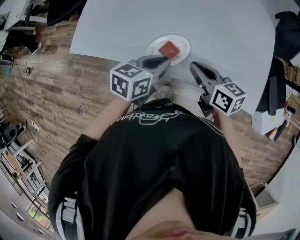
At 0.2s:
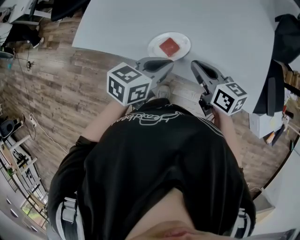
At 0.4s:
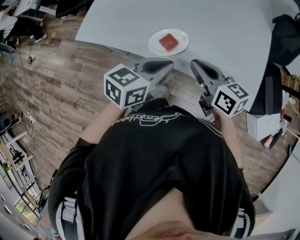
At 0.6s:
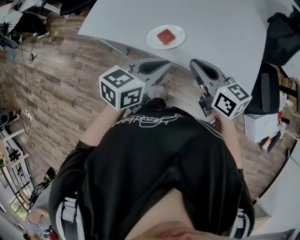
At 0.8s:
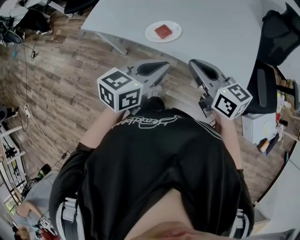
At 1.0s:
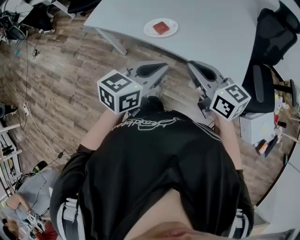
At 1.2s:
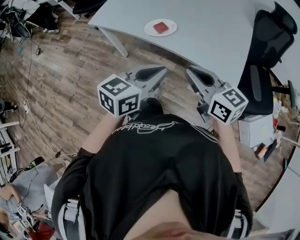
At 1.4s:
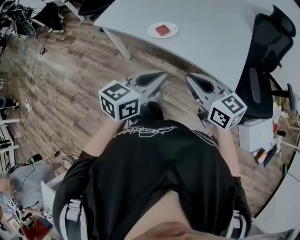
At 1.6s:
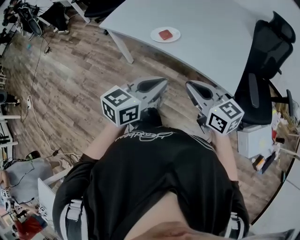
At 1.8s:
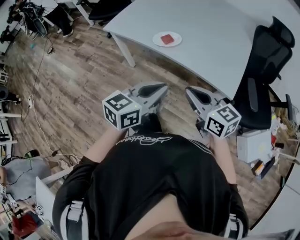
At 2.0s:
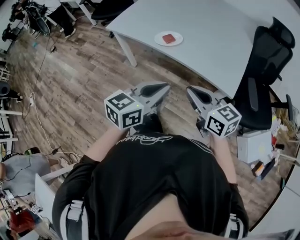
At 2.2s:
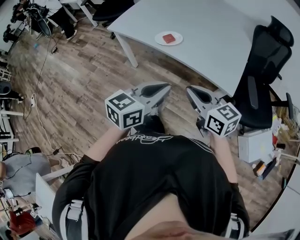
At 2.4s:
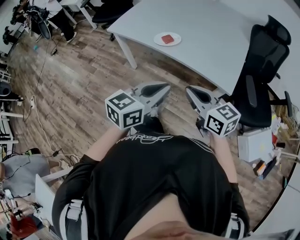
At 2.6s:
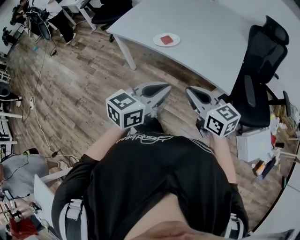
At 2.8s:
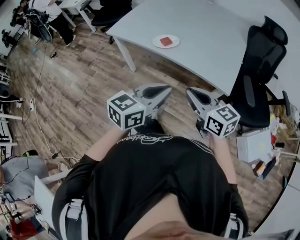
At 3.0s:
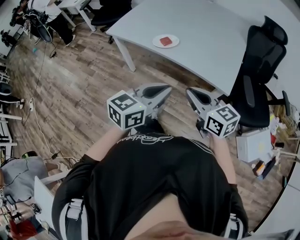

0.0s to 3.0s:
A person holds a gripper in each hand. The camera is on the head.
0.0s to 1.6s: Both grippers move backward and upward, roughly 35 cm. The right gripper changes its angle by about 30 degrees, while the left gripper rotates about 20 degrees.
1.6s to 3.0s: Both grippers move backward, roughly 5 cm.

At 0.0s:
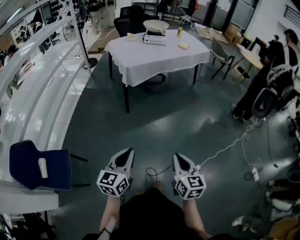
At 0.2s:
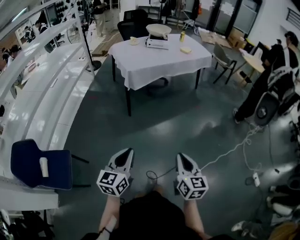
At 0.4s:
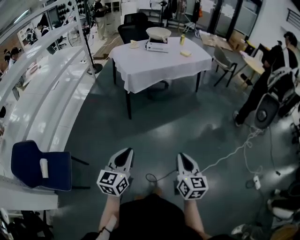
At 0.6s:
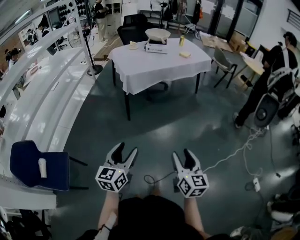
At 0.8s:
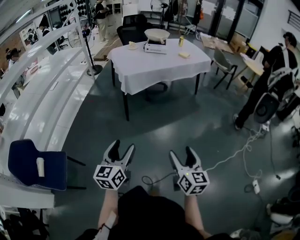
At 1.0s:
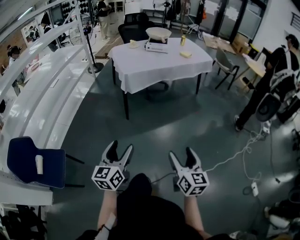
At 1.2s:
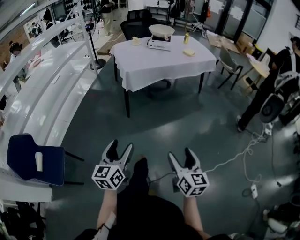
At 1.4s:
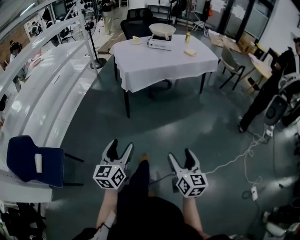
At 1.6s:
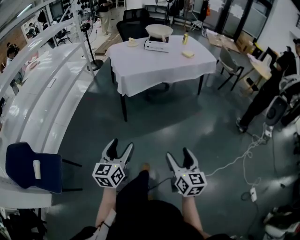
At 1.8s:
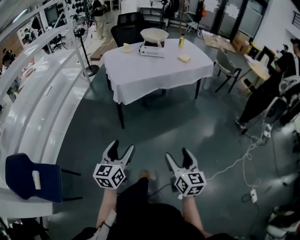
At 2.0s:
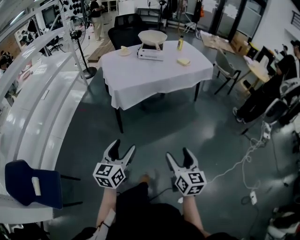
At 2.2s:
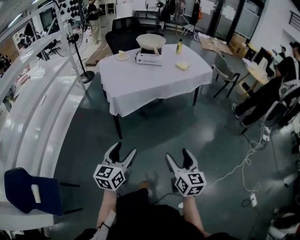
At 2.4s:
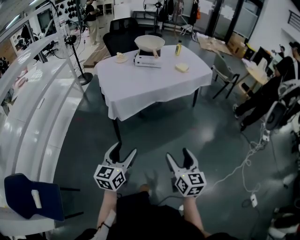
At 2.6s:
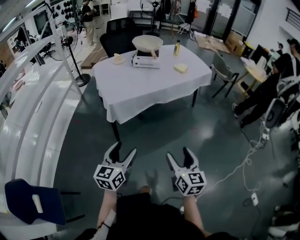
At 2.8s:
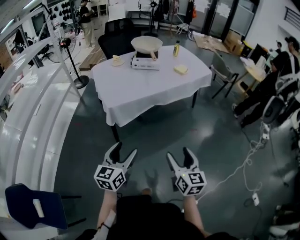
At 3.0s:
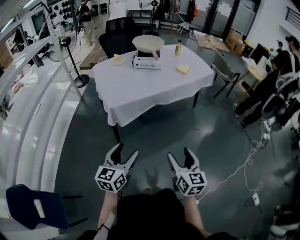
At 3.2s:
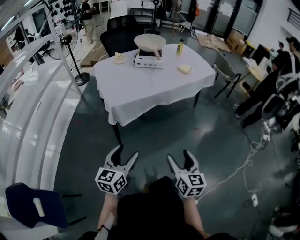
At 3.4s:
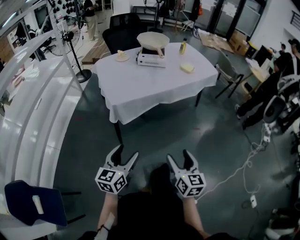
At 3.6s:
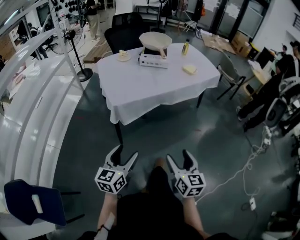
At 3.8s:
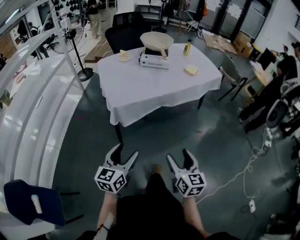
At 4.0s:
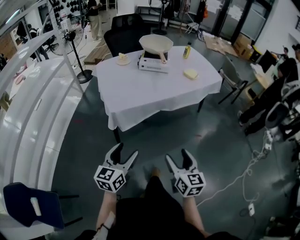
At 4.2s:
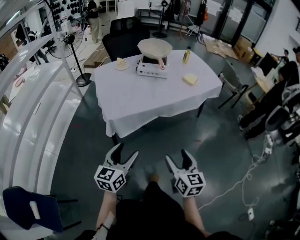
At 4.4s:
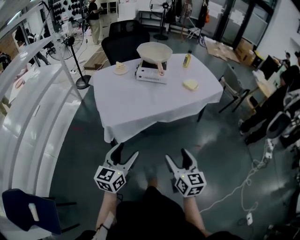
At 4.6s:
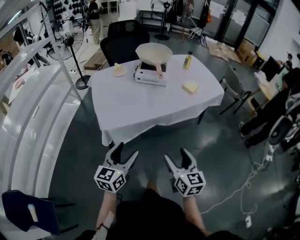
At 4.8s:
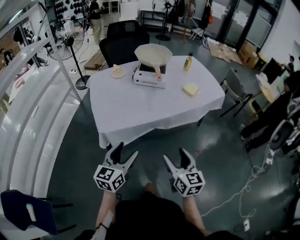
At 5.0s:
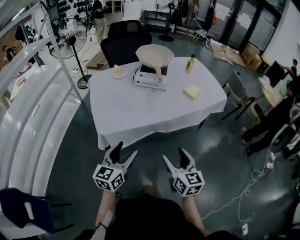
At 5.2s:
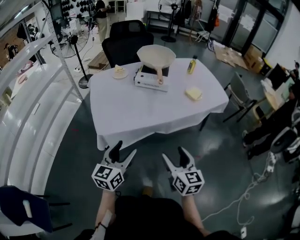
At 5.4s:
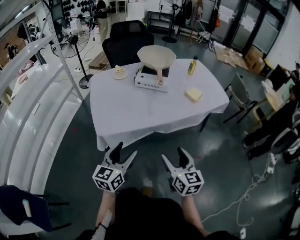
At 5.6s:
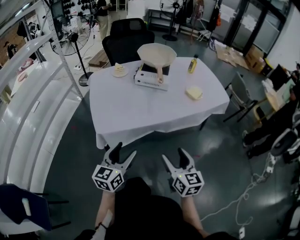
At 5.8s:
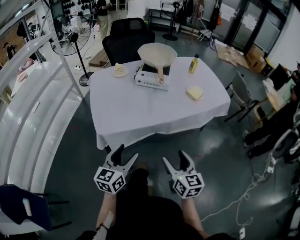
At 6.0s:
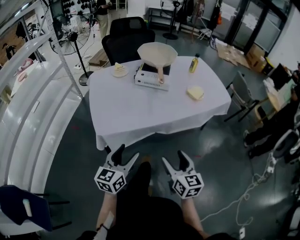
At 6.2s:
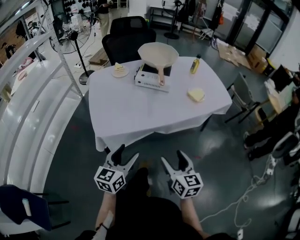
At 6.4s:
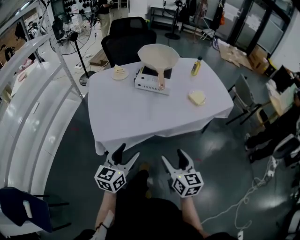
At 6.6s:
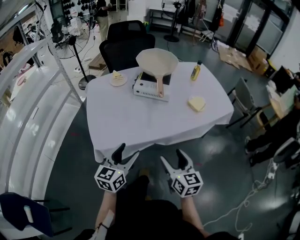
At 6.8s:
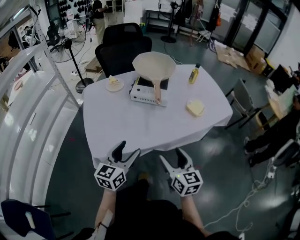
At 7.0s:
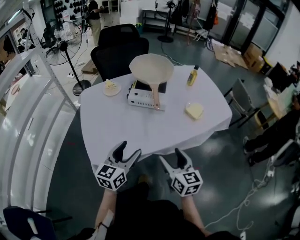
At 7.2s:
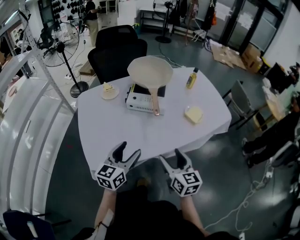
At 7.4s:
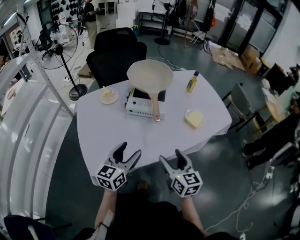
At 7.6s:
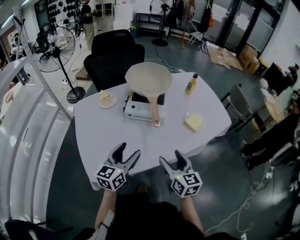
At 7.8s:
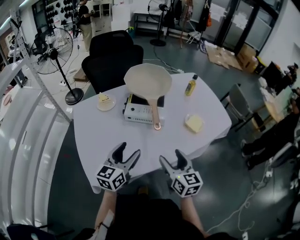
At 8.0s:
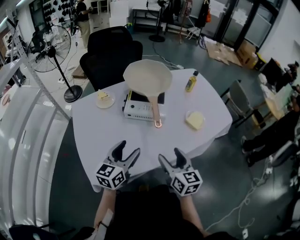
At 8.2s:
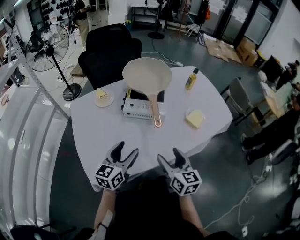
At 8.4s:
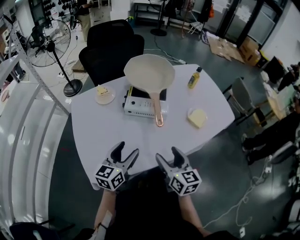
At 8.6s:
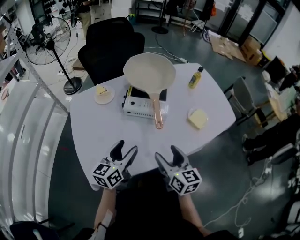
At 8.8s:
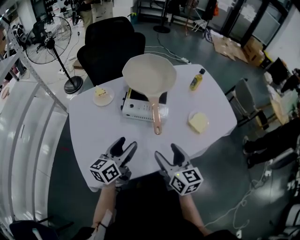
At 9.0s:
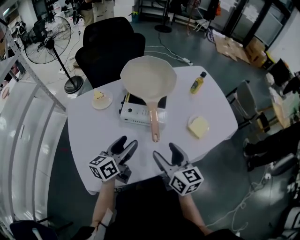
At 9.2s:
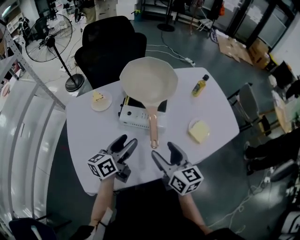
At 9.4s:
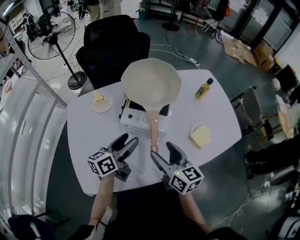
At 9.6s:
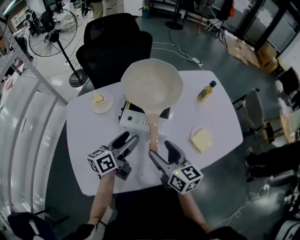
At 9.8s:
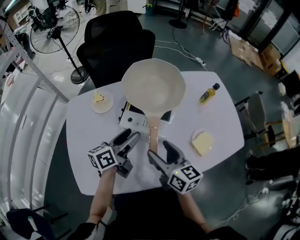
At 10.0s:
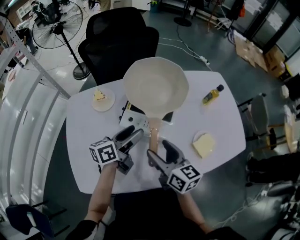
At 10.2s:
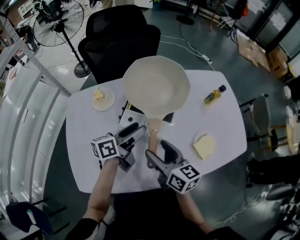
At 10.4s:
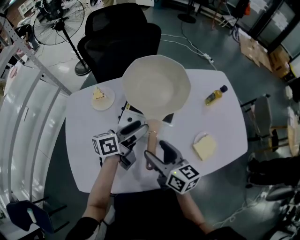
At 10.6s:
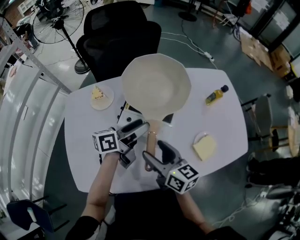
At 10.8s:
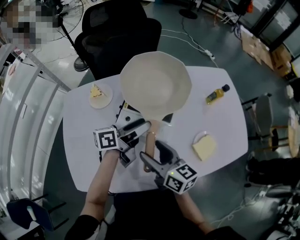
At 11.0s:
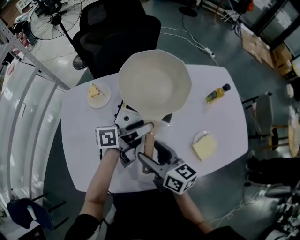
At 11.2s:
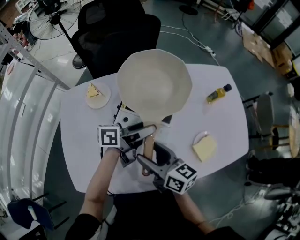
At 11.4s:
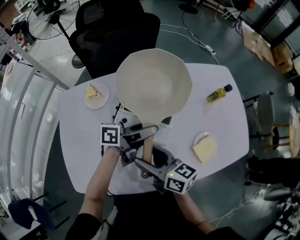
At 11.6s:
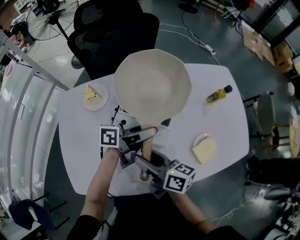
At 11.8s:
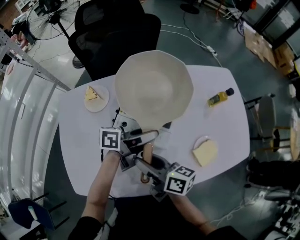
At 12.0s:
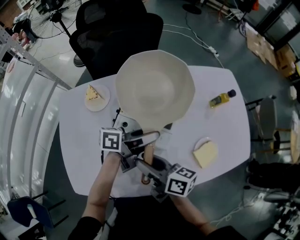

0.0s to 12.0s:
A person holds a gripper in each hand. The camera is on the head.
0.0s to 1.6s: The right gripper shifts roughly 20 cm forward and to the right, and opens its fingers. The left gripper moves forward, about 15 cm, and opens up.
1.6s to 3.0s: The grippers both shift forward by roughly 30 cm.
3.0s to 4.4s: The grippers both shift forward by roughly 20 cm.
4.4s to 6.0s: The right gripper goes approximately 15 cm forward. Meanwhile the left gripper moves forward and to the right, about 15 cm.
6.0s to 7.6s: The two grippers go roughly 30 cm forward.
7.6s to 9.0s: Both grippers travel together forward, about 10 cm. The left gripper rotates some 20 degrees.
9.0s to 10.4s: Both grippers travel together forward, some 15 cm. The right gripper rotates roughly 20 degrees.
10.4s to 12.0s: The left gripper goes approximately 5 cm to the right, and rotates about 20 degrees. Meanwhile the right gripper turns by roughly 30 degrees, and closes.

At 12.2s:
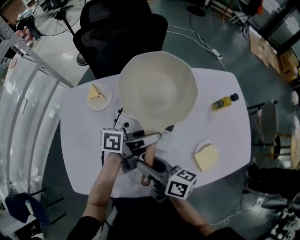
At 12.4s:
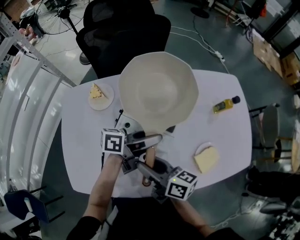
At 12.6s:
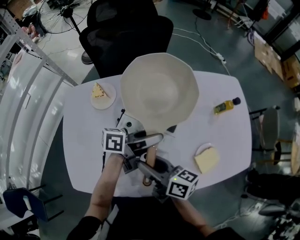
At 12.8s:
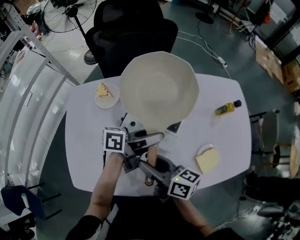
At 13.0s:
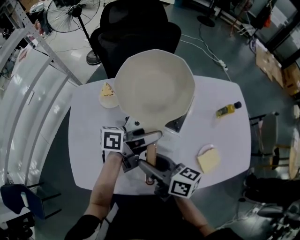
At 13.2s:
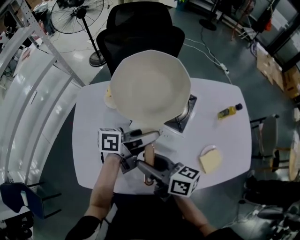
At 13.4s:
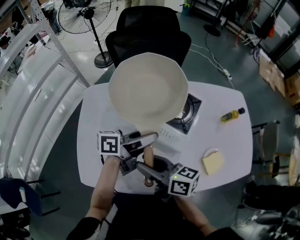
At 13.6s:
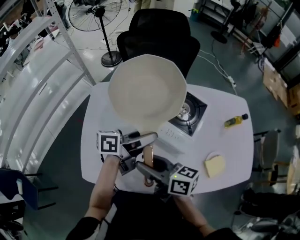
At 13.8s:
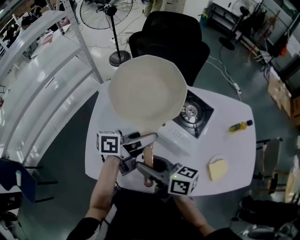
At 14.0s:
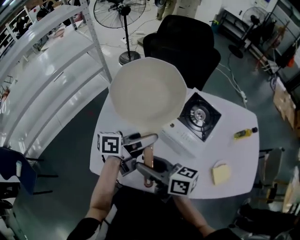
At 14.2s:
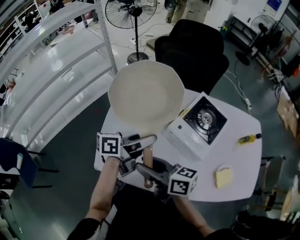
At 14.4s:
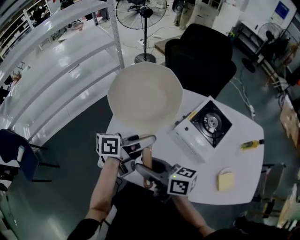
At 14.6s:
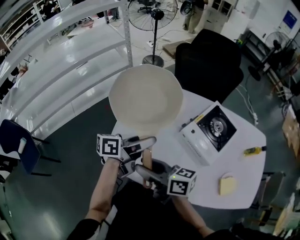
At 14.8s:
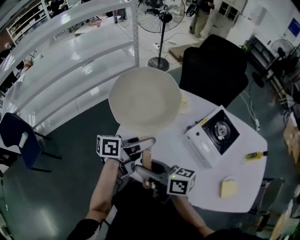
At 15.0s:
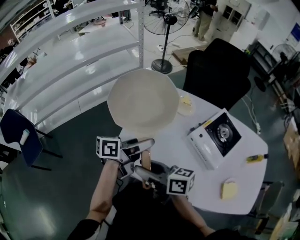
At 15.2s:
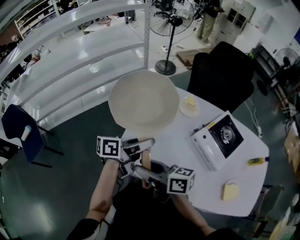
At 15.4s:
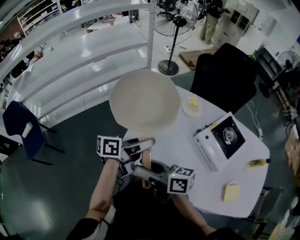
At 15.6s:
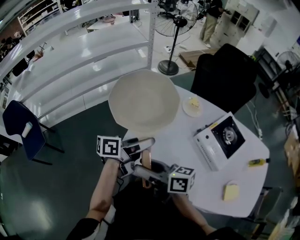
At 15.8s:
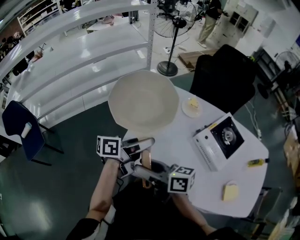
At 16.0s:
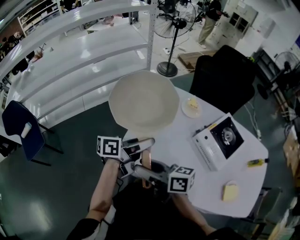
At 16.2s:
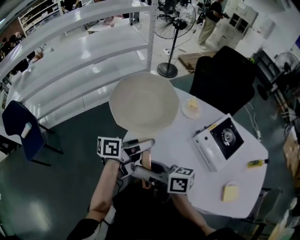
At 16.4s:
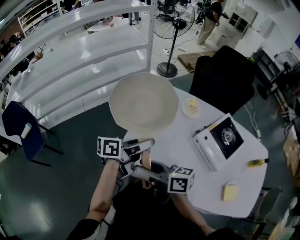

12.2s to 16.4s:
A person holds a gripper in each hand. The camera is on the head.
12.2s to 13.6s: The right gripper is displaced to the left, upward and backward by some 15 cm. The left gripper is displaced to the left and upward by roughly 15 cm.
13.6s to 15.0s: The left gripper shifts by roughly 25 cm, and rotates approximately 30 degrees; the right gripper ends up some 20 cm from where it was, and rotates about 30 degrees.
15.0s to 16.4s: The grippers move only a little.

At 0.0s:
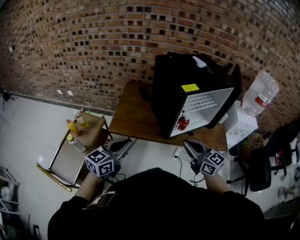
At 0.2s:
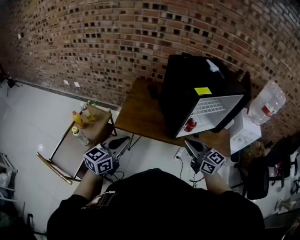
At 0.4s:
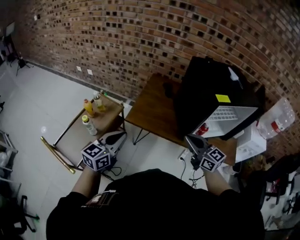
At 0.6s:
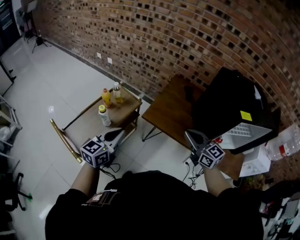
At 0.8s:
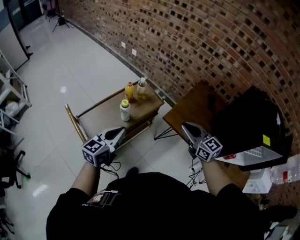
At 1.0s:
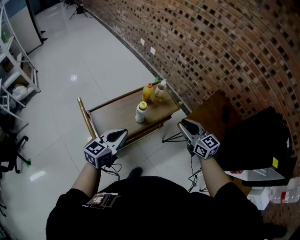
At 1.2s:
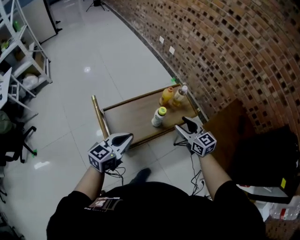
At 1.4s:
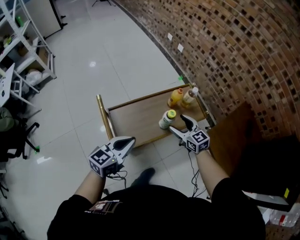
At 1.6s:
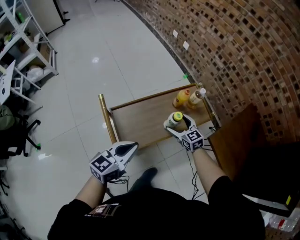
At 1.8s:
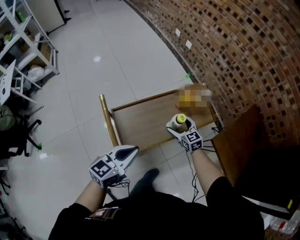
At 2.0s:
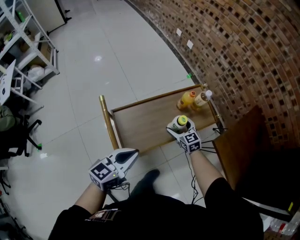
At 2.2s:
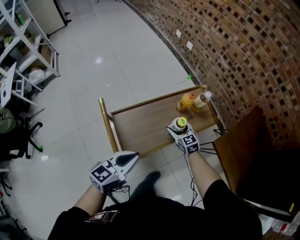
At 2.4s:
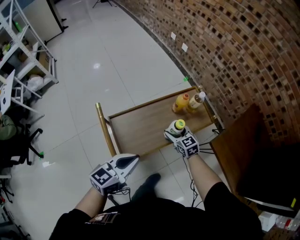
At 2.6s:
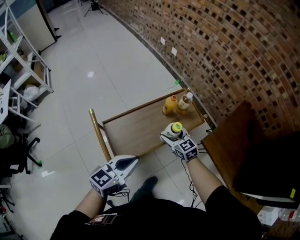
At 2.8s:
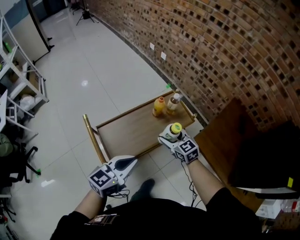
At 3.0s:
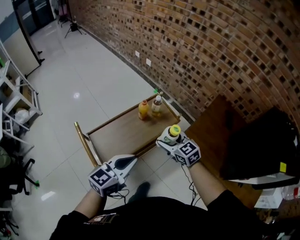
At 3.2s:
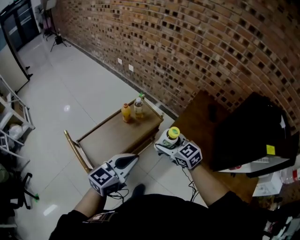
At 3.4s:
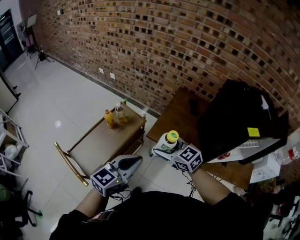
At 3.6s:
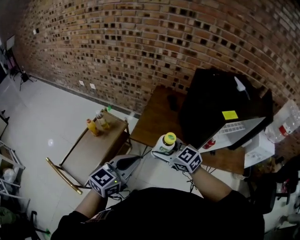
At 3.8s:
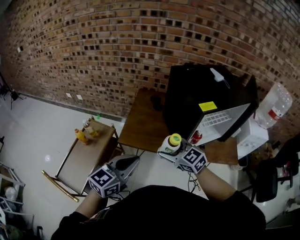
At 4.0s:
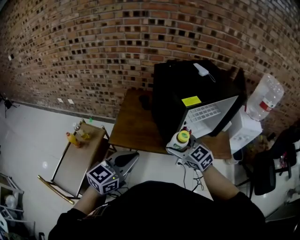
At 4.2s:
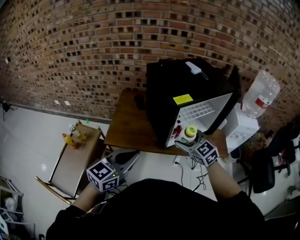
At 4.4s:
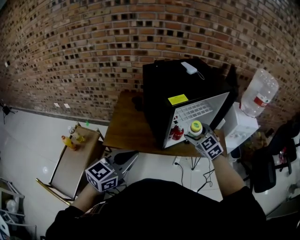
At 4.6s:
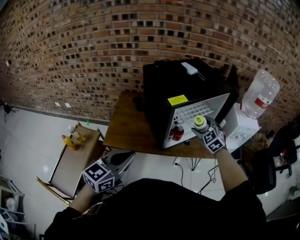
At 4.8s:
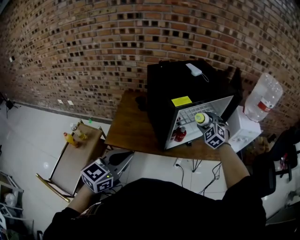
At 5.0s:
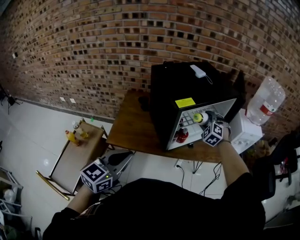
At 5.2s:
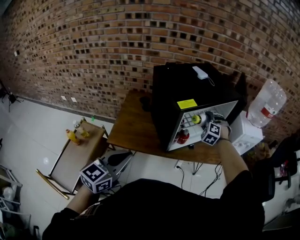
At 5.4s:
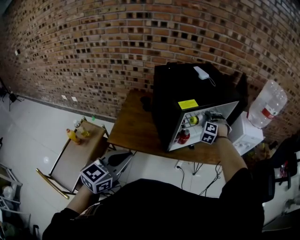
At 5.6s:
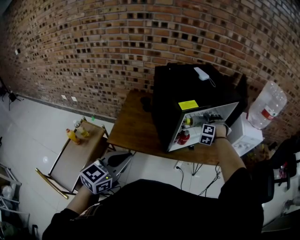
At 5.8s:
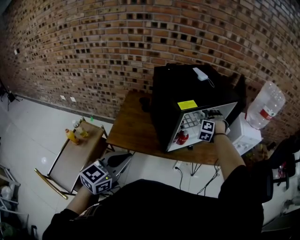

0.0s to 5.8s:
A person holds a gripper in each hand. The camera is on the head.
0.0s to 1.4s: Both grippers are carried roughly 60 cm. The left gripper swivels approximately 50 degrees. The right gripper rotates roughly 50 degrees, and opens its fingers.
1.4s to 2.8s: The left gripper goes roughly 10 cm to the right. Meanwhile the right gripper travels downward and back again, some 10 cm each way.
2.8s to 4.4s: The pair of grippers is taken roughly 60 cm. The right gripper changes its angle by some 50 degrees. The left gripper rotates roughly 50 degrees.
4.4s to 5.8s: The right gripper goes roughly 15 cm forward, and swivels approximately 60 degrees.
